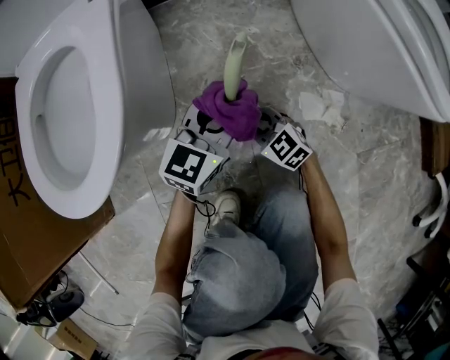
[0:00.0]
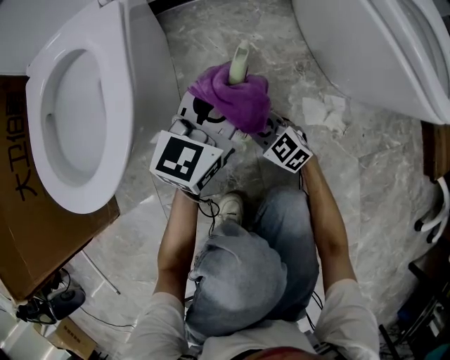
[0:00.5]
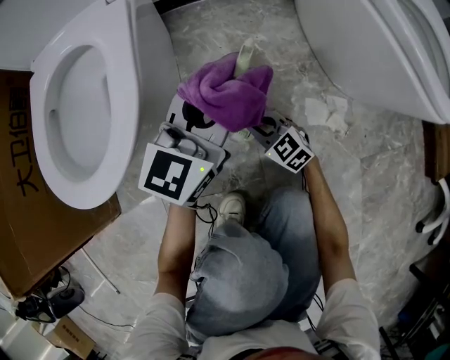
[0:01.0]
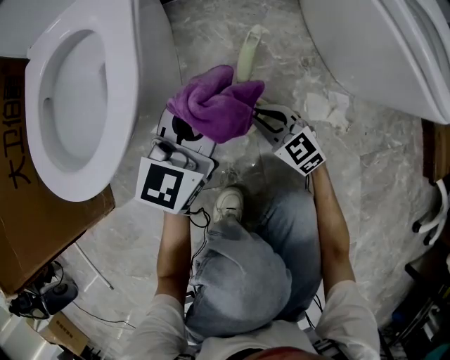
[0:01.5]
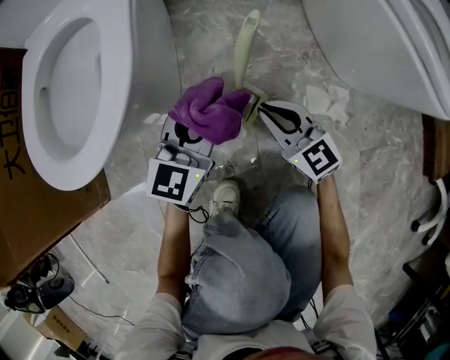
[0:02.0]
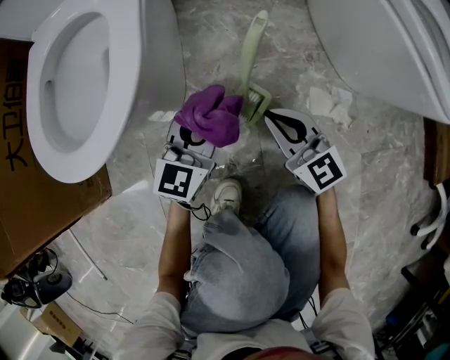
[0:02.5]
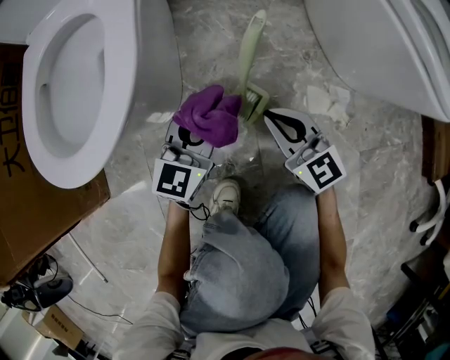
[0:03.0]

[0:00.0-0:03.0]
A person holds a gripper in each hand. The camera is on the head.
0:00.0 to 0:01.5: The left gripper heads upward and to the left, covering about 10 cm.
0:01.5 to 0:03.0: The right gripper is displaced upward by some 10 cm, while the left gripper travels downward by some 10 cm.

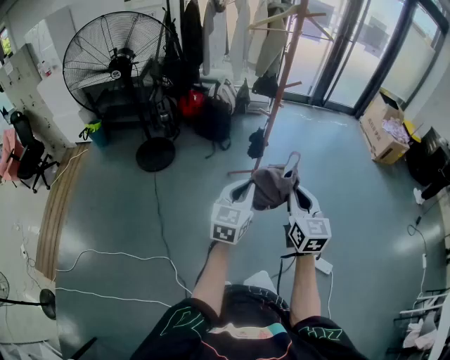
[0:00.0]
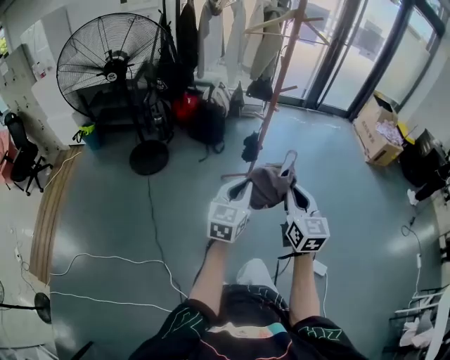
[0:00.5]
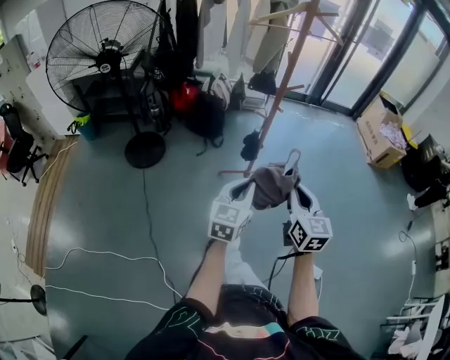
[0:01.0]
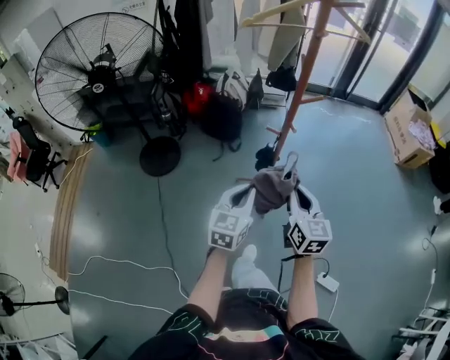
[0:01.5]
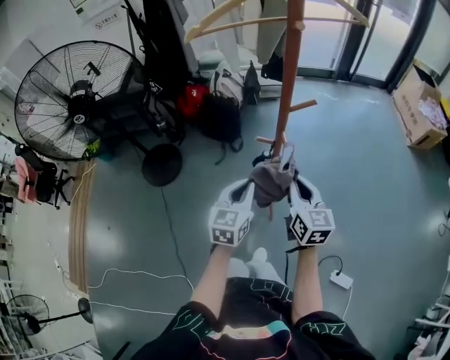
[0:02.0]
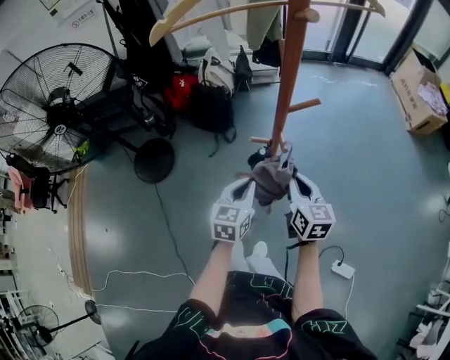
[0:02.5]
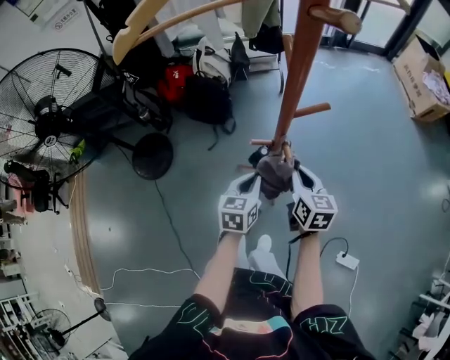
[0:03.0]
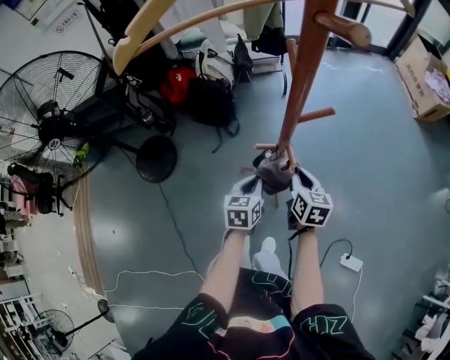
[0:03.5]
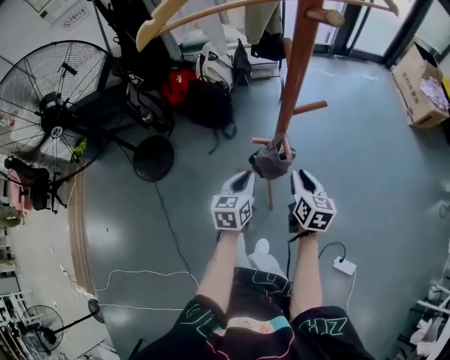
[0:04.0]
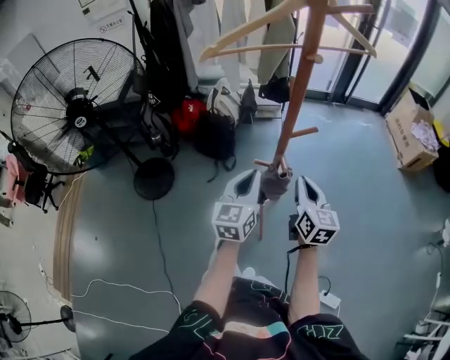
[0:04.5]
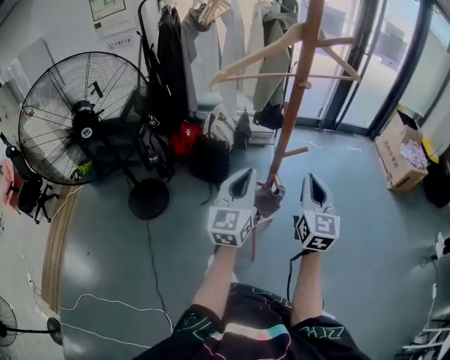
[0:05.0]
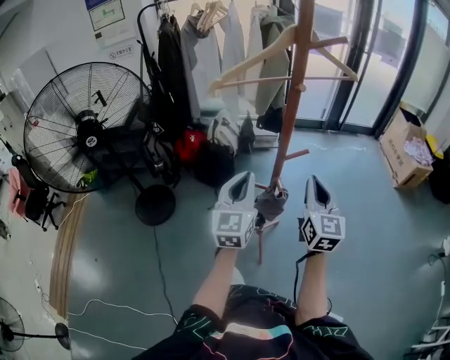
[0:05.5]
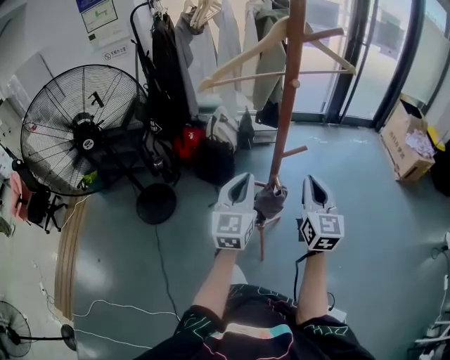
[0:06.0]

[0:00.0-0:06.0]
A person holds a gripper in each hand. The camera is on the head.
0:00.0 to 0:02.0: The grippers both shift forward by roughly 35 cm.
0:02.0 to 0:04.0: Both grippers move downward and forward, some 15 cm. The right gripper swivels roughly 20 degrees.
0:04.0 to 0:06.0: The two grippers go about 25 cm upward. The left gripper swivels roughly 40 degrees. Meanwhile the right gripper turns by about 40 degrees, and closes its fingers.

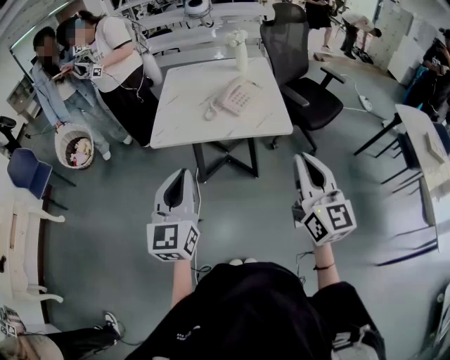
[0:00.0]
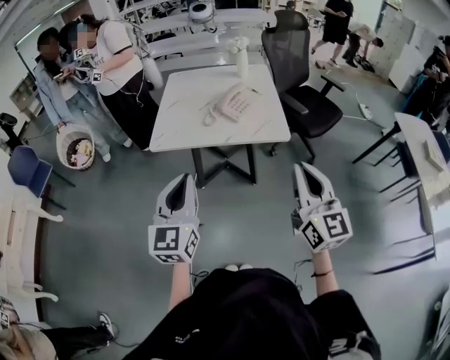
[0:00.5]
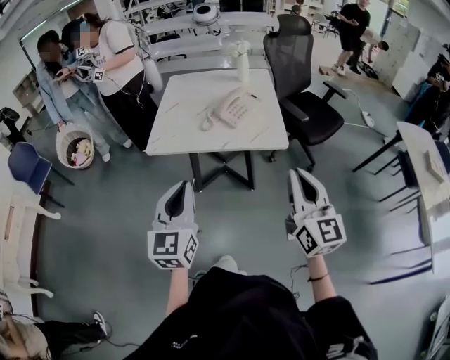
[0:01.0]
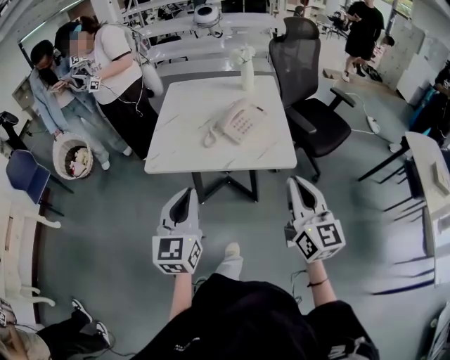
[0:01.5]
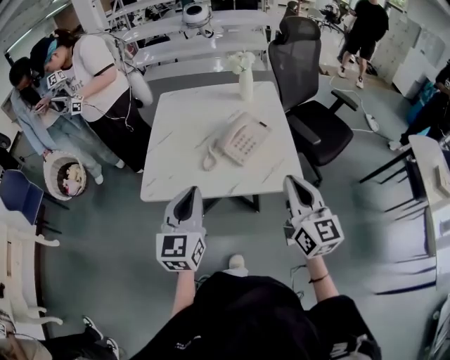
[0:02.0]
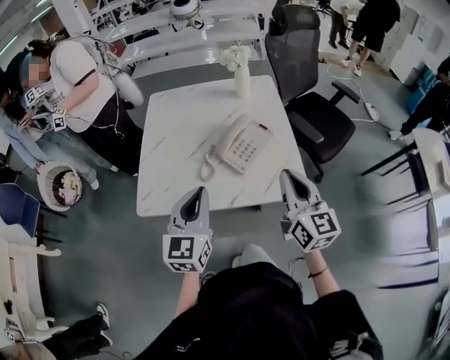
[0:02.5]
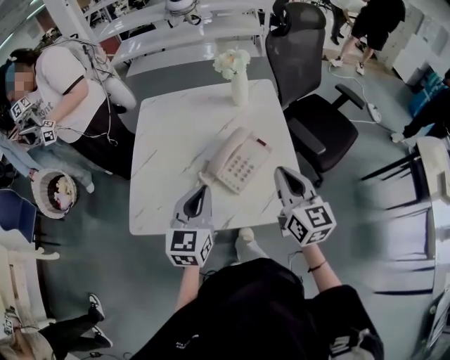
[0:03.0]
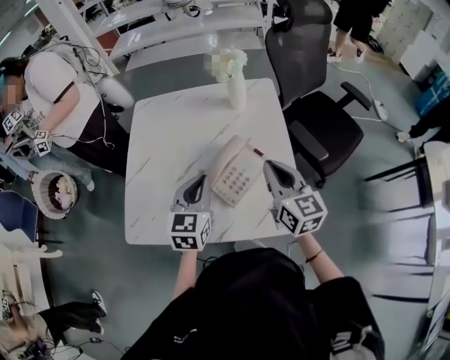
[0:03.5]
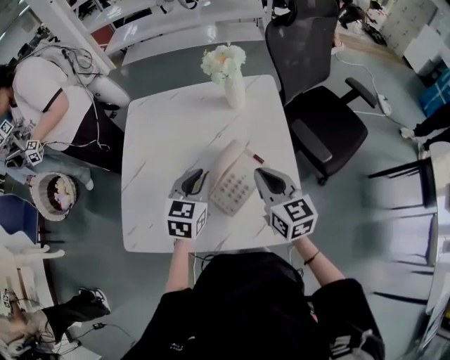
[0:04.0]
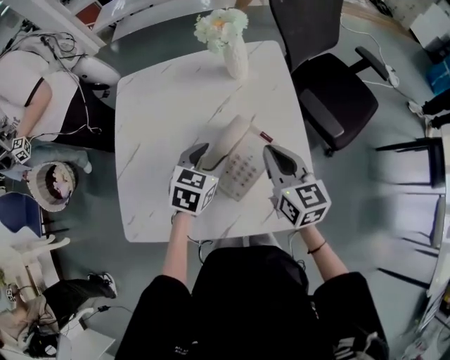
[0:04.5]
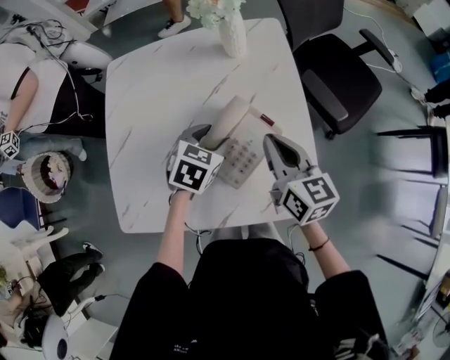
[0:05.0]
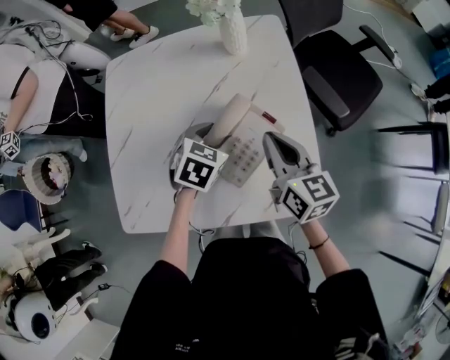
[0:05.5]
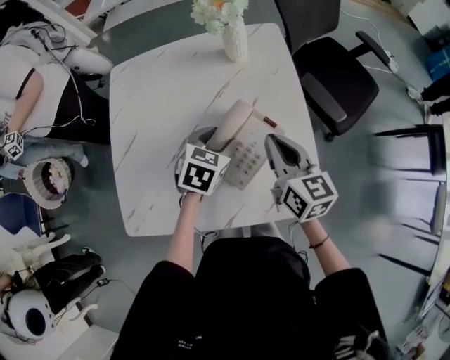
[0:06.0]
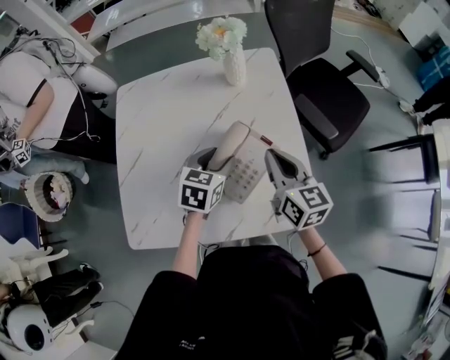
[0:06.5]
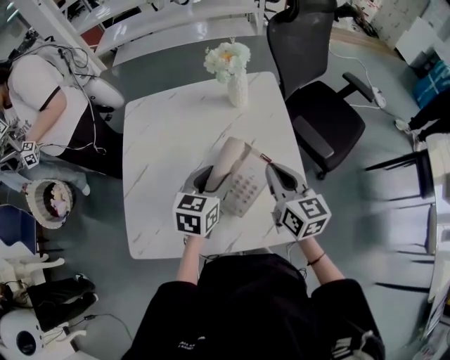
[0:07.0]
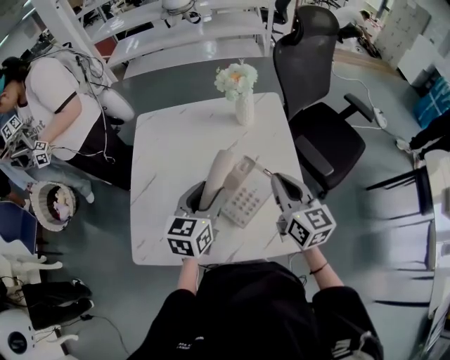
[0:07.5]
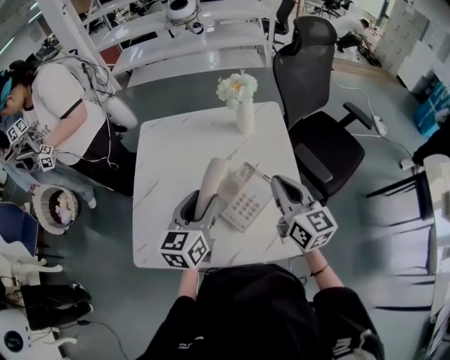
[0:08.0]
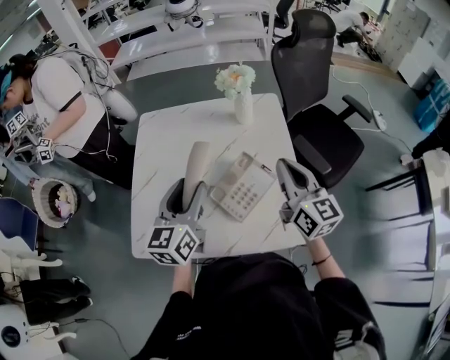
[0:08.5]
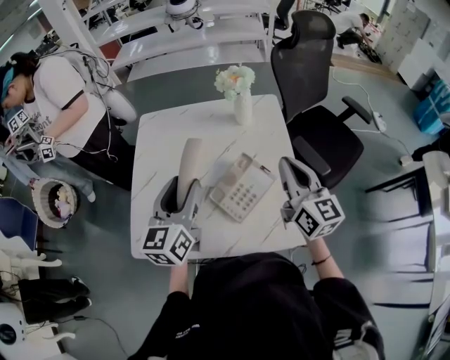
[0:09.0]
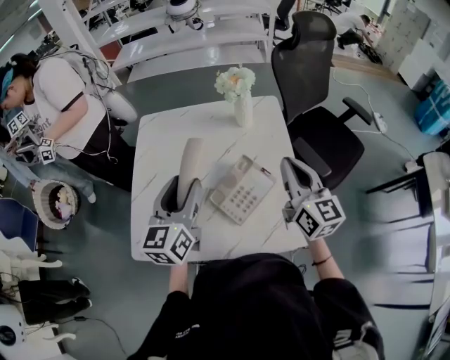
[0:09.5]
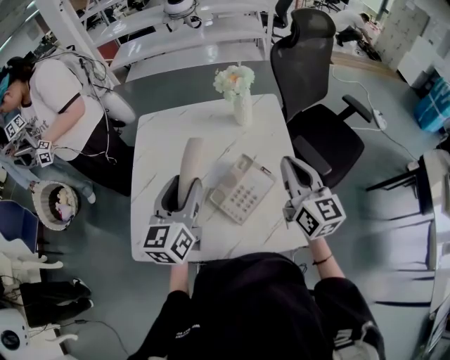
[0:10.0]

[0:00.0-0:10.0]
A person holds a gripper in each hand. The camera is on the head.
0:00.0 to 0:02.0: The grippers both shift forward by some 25 cm.
0:02.0 to 0:04.0: The grippers both shift forward and downward by some 35 cm. The left gripper changes its angle by some 30 degrees.
0:04.0 to 0:06.0: The left gripper travels downward by roughly 10 cm, turns by roughly 20 degrees, and opens.
0:06.0 to 0:08.0: The left gripper moves upward, to the left and backward, roughly 20 cm, and tips its fingers upward by about 30 degrees, while the right gripper moves upward, approximately 10 cm.
0:08.0 to 0:10.0: The left gripper moves approximately 5 cm.

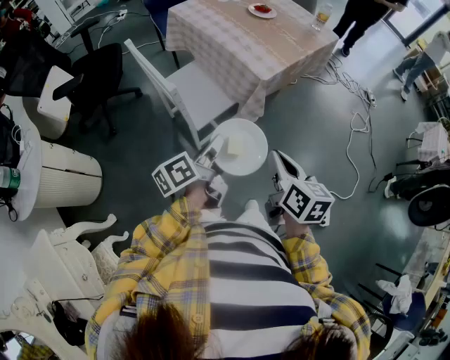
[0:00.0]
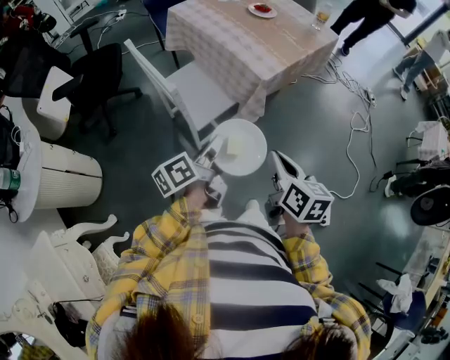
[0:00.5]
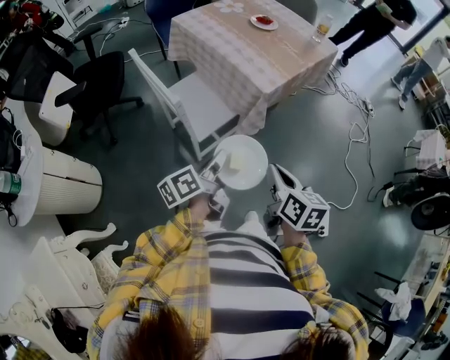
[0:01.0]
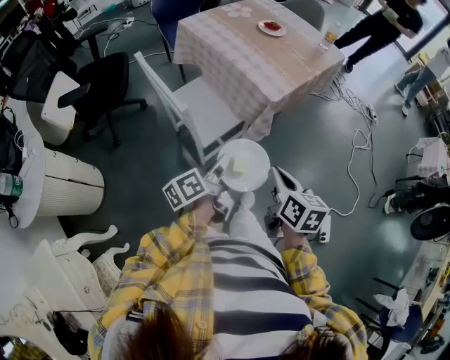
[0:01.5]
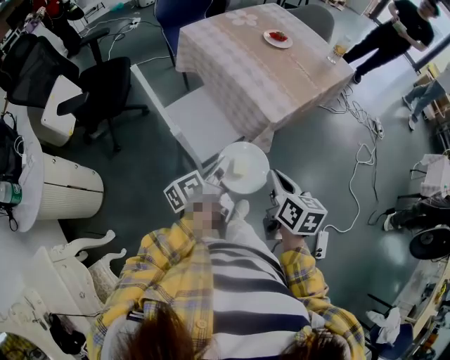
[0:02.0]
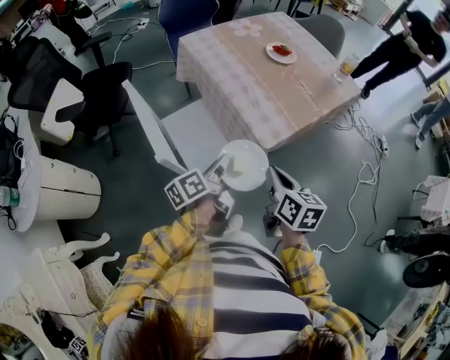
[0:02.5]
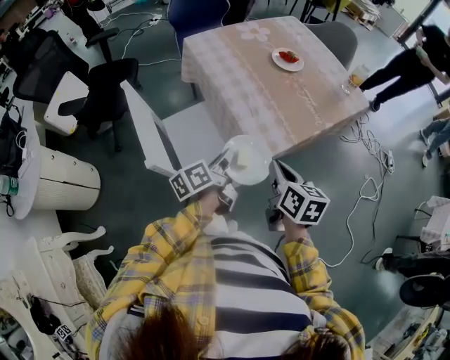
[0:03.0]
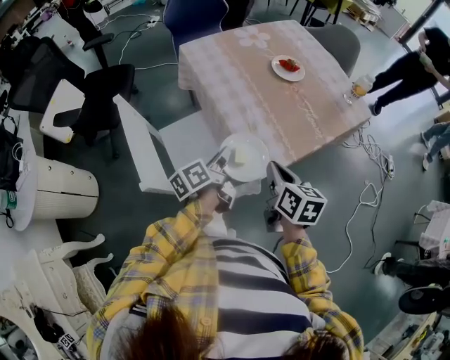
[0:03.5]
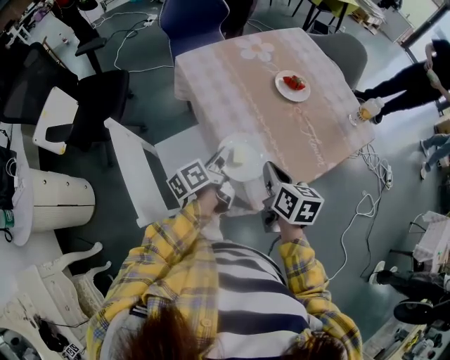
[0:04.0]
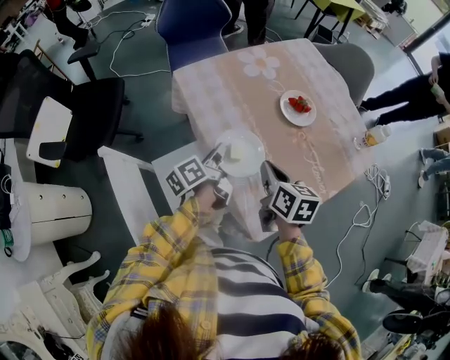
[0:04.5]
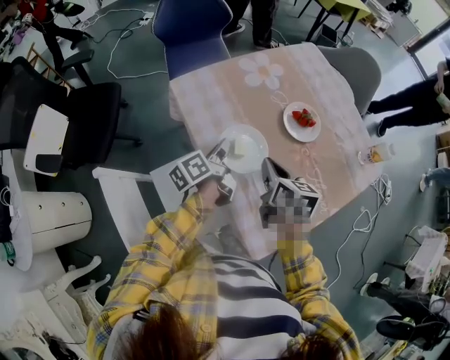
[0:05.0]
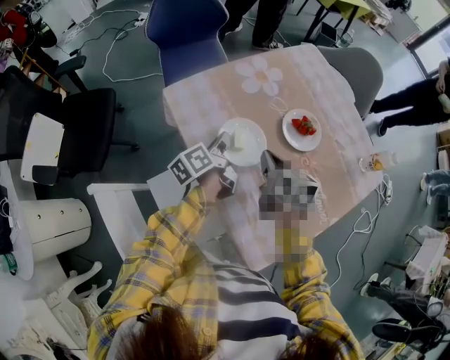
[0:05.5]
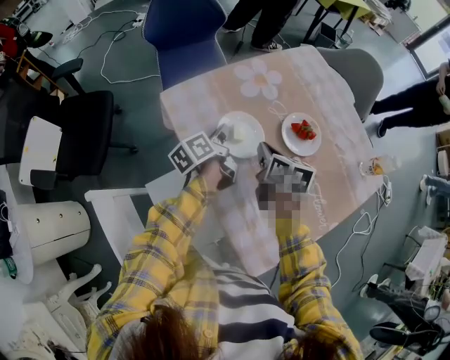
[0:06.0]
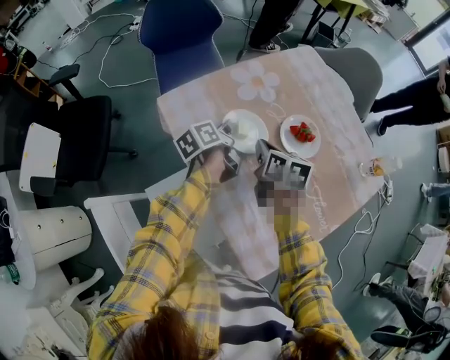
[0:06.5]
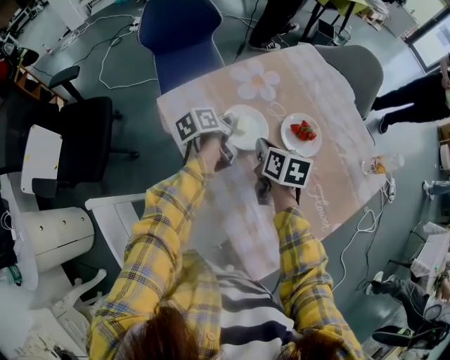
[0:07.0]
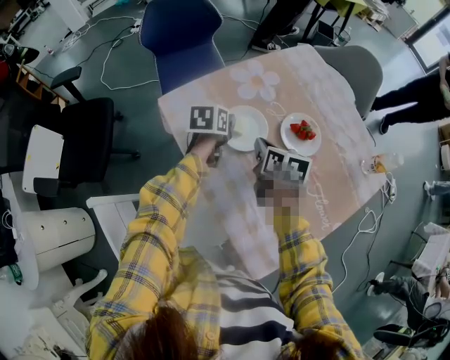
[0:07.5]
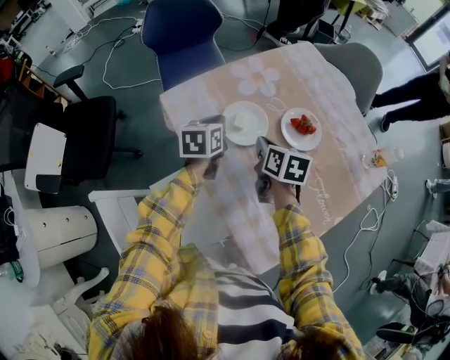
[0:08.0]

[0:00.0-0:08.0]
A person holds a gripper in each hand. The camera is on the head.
0:00.0 to 0:02.0: The two grippers go roughly 10 cm forward.
0:02.0 to 0:04.0: The two grippers go some 30 cm forward.
0:04.0 to 0:06.0: The grippers both shift forward by roughly 30 cm.
0:06.0 to 0:08.0: The left gripper rotates around the line of its fingers by about 50 degrees, clockwise from behind, and opens and closes again.
